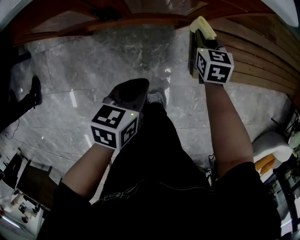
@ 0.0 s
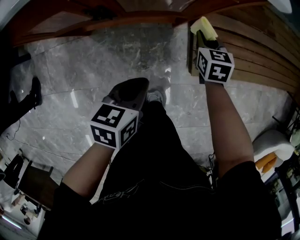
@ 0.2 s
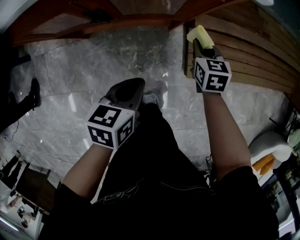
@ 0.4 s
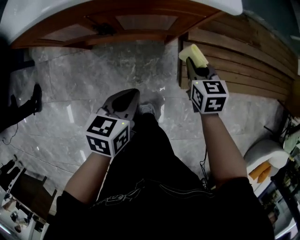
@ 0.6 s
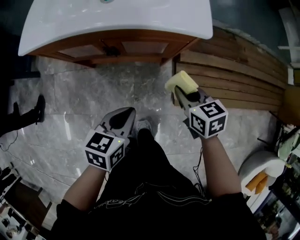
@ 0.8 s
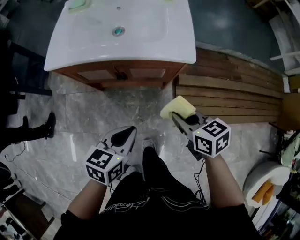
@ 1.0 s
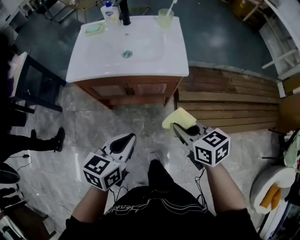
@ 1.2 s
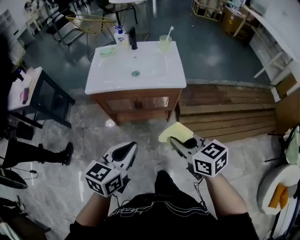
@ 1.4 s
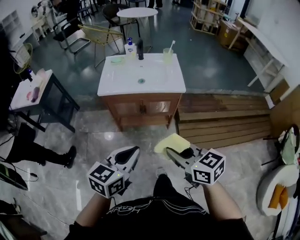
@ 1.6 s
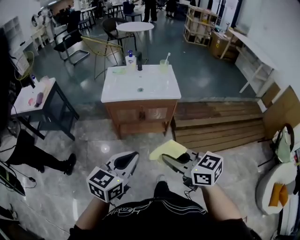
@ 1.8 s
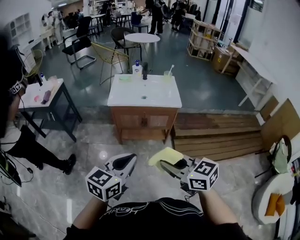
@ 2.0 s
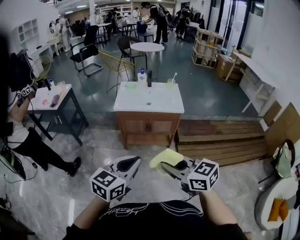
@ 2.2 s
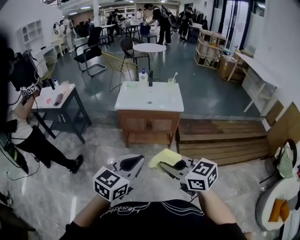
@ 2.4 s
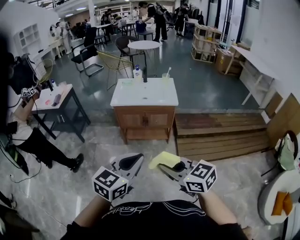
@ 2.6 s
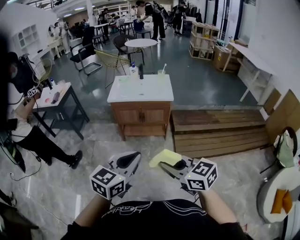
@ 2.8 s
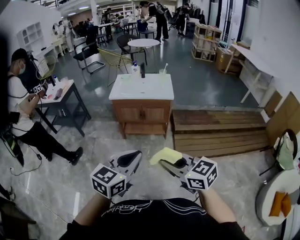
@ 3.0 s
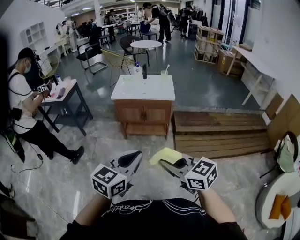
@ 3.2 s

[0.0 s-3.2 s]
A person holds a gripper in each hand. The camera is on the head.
0.0 to 1.6 s: The grippers both shift upward by approximately 50 cm. The left gripper changes its angle by roughly 40 degrees, while the right gripper changes its angle by some 40 degrees.
1.6 to 3.2 s: Both grippers move backward, about 30 cm.

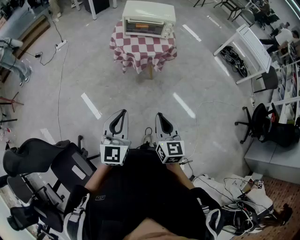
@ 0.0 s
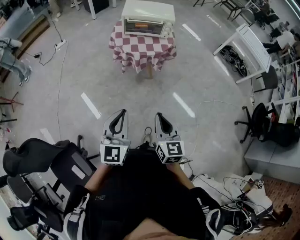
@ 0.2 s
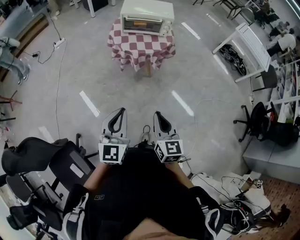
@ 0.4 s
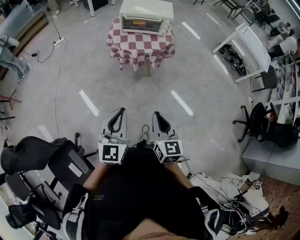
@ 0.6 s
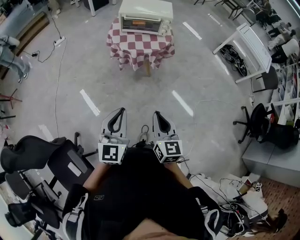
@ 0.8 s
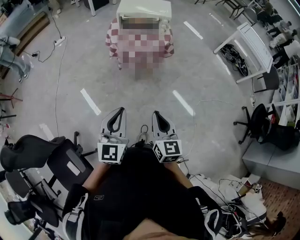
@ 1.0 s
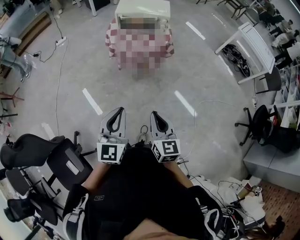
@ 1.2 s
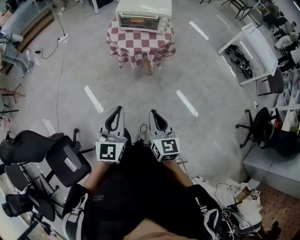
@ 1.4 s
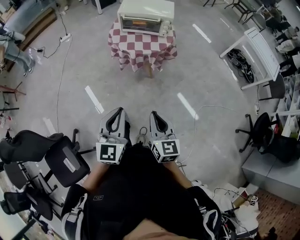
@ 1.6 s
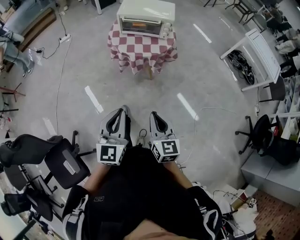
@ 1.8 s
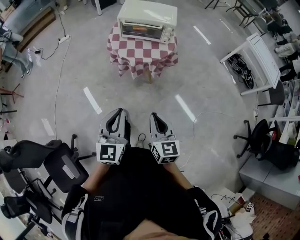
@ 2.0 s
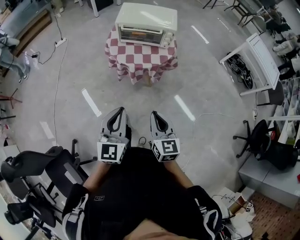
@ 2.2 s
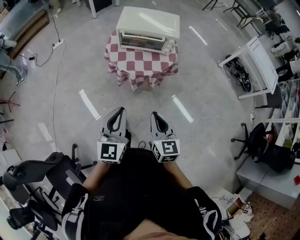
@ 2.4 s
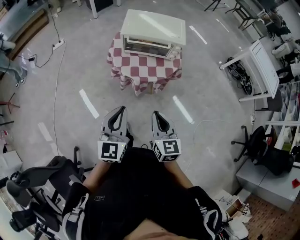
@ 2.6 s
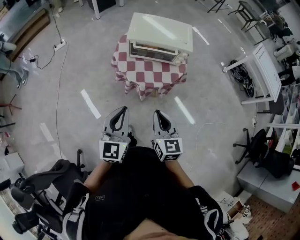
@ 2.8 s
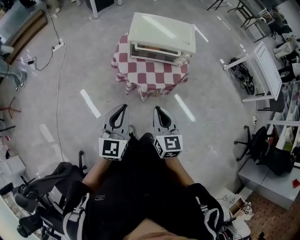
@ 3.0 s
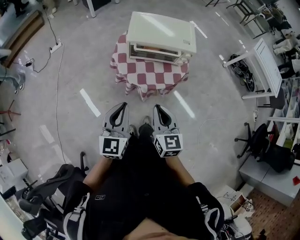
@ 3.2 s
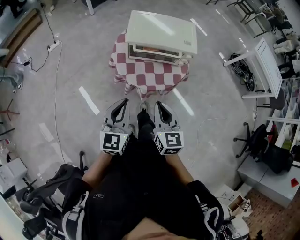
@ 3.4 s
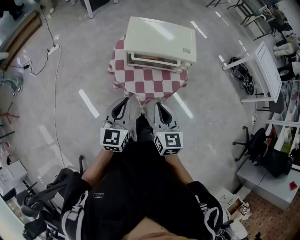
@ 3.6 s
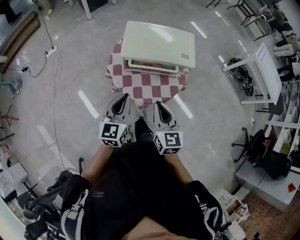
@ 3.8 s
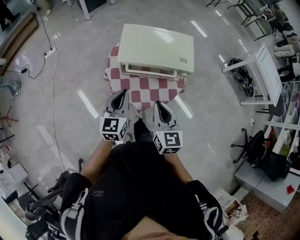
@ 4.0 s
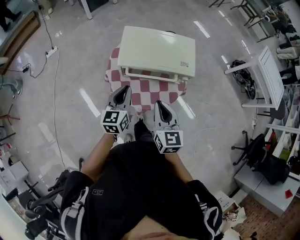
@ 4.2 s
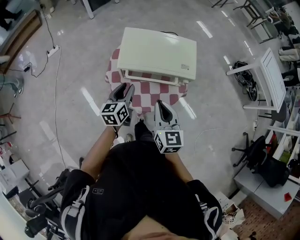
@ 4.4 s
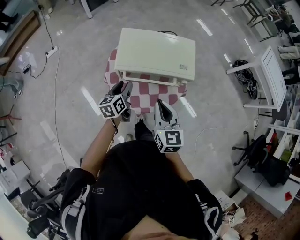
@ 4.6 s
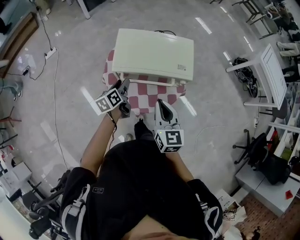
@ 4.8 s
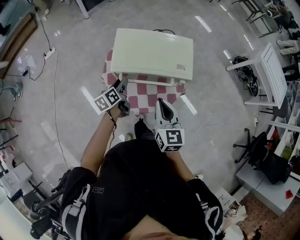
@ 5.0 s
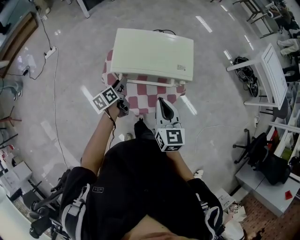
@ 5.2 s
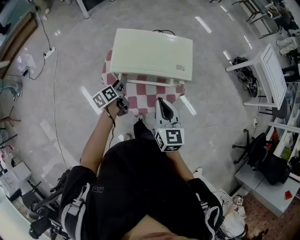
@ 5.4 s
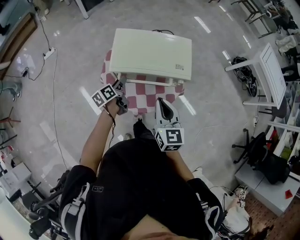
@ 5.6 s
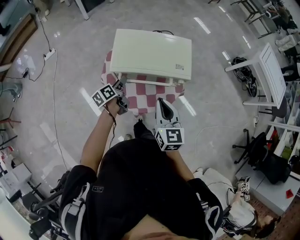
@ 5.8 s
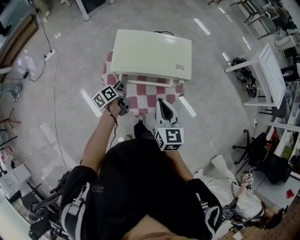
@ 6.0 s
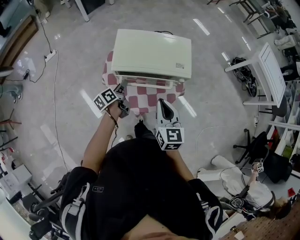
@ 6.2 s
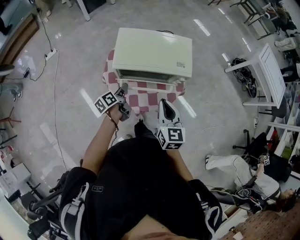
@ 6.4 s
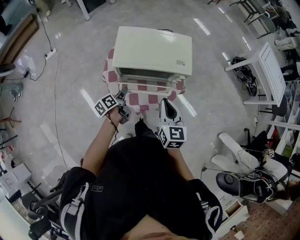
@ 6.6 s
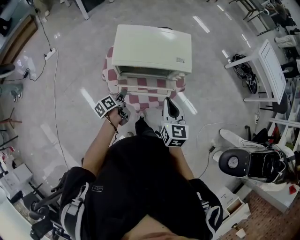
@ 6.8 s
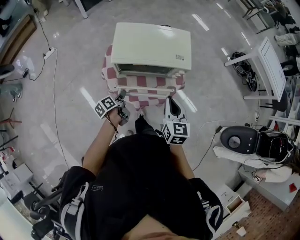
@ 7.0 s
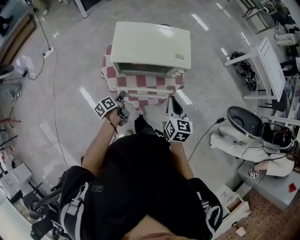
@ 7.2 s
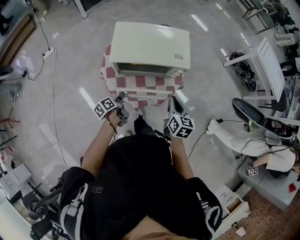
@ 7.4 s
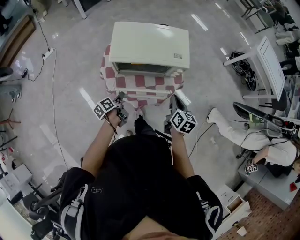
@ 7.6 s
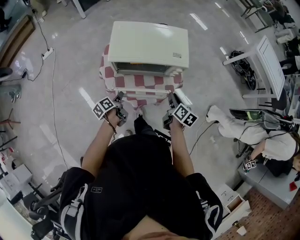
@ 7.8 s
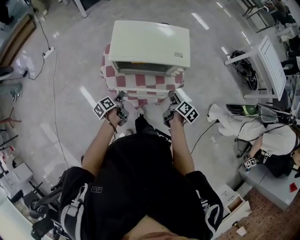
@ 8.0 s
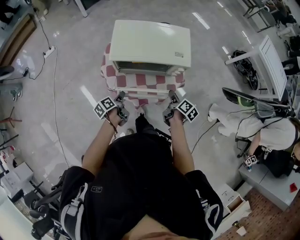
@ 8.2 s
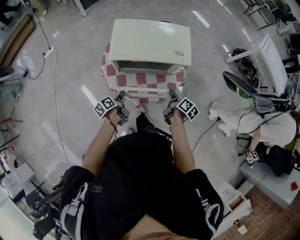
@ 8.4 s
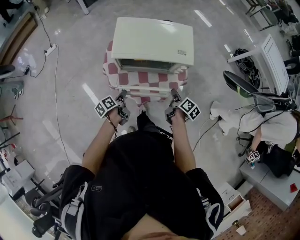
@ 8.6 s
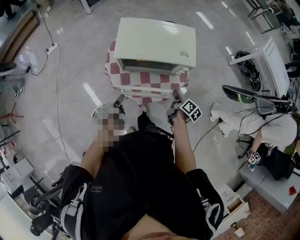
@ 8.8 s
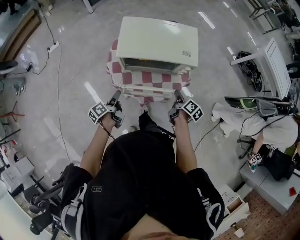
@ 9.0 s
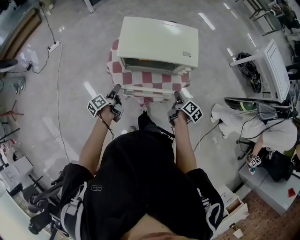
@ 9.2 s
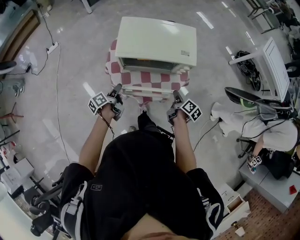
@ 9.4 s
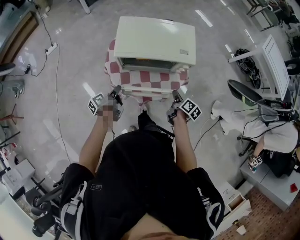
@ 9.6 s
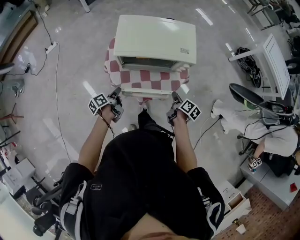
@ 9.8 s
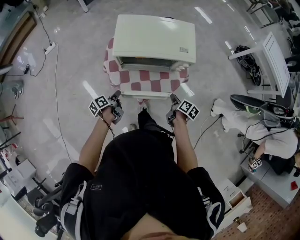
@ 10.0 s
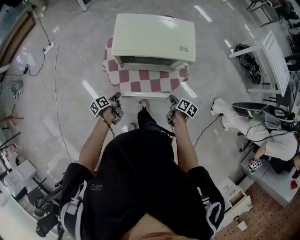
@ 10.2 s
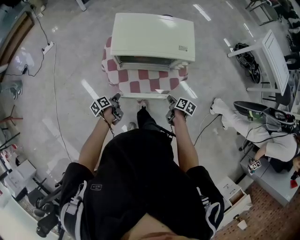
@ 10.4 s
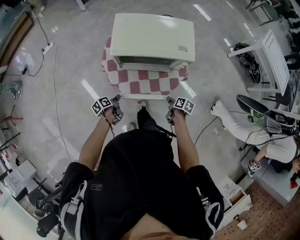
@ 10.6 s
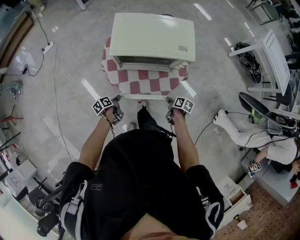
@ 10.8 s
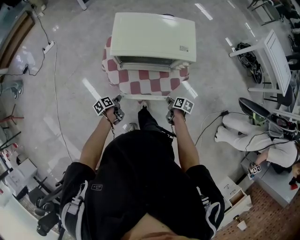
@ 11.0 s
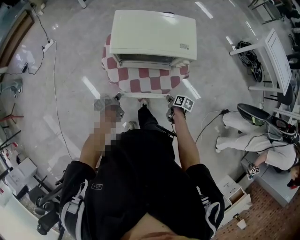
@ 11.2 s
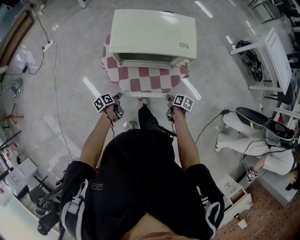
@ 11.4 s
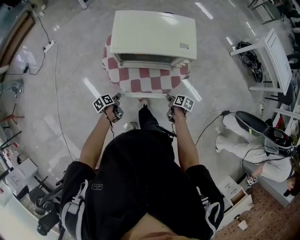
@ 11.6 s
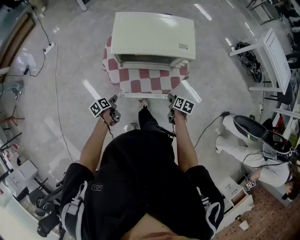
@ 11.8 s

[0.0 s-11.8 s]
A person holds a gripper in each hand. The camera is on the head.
0.0 to 1.4 s: The two grippers go some 10 cm to the right.
1.4 to 3.0 s: Both grippers move forward, about 35 cm.
3.0 to 4.4 s: The left gripper moves forward and downward, about 35 cm, turns by some 30 degrees, and opens its fingers. The right gripper shifts some 25 cm forward.
4.4 to 6.0 s: The left gripper is displaced downward and forward by roughly 10 cm, and swivels about 40 degrees.
6.0 to 7.4 s: The left gripper moves backward and downward, roughly 15 cm; the right gripper shifts some 15 cm to the right and downward, and turns by some 20 degrees.
7.4 to 8.8 s: The right gripper travels downward by approximately 10 cm, and twists about 40 degrees clockwise, seen from behind.
8.8 to 10.4 s: The left gripper goes approximately 10 cm downward, and closes its fingers. Meanwhile the right gripper heads downward and backward, covering approximately 10 cm, and swivels about 20 degrees.
10.4 to 11.8 s: The right gripper opens up.

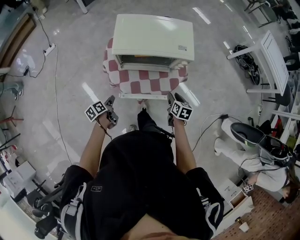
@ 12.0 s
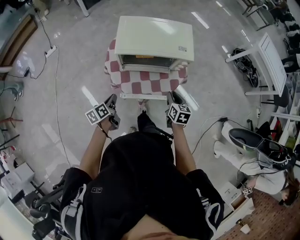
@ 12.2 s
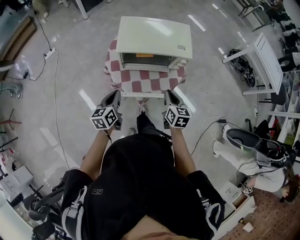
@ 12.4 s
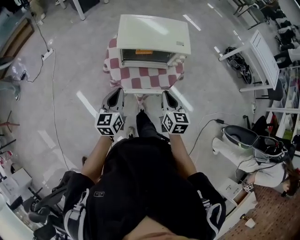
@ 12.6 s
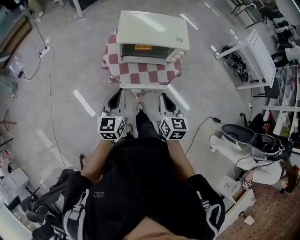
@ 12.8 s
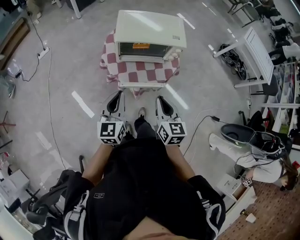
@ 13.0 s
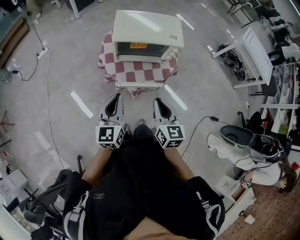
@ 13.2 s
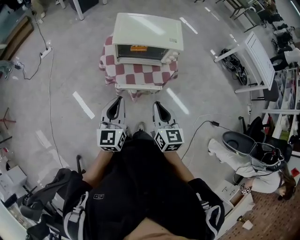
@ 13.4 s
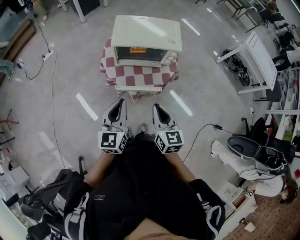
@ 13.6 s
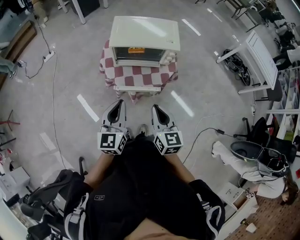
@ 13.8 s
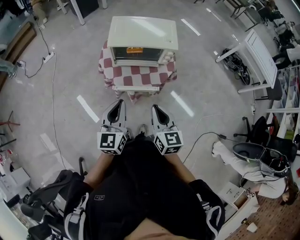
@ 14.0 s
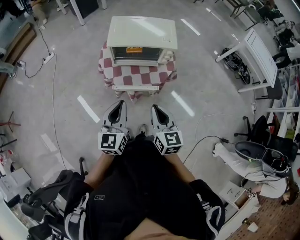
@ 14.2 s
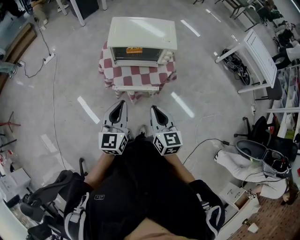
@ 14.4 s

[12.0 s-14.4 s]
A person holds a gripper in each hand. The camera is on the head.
12.0 to 13.2 s: The left gripper goes about 30 cm upward, twists some 50 degrees clockwise, seen from behind, and closes its fingers; the right gripper moves upward, backward and to the left, some 30 cm, changes its angle by approximately 30 degrees, and closes its fingers.
13.2 to 14.4 s: The left gripper is displaced to the right by about 5 cm.

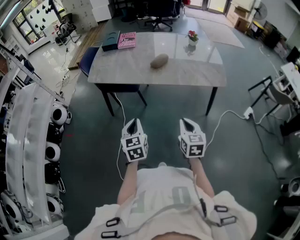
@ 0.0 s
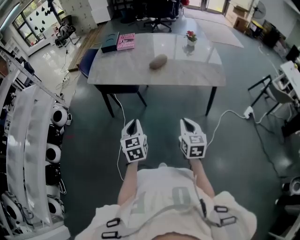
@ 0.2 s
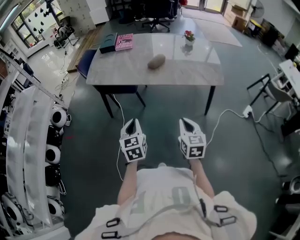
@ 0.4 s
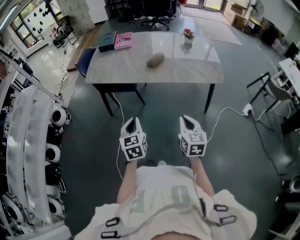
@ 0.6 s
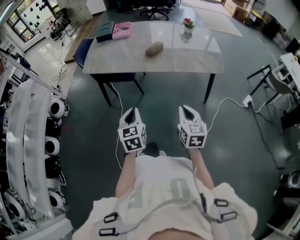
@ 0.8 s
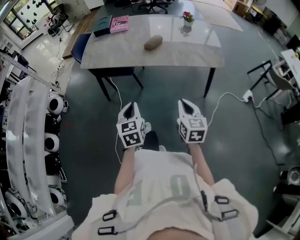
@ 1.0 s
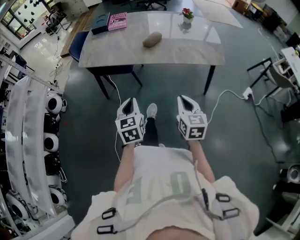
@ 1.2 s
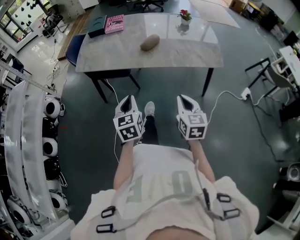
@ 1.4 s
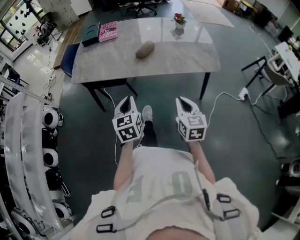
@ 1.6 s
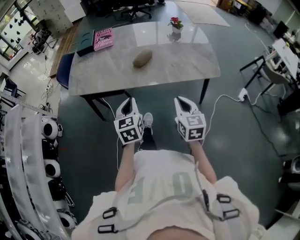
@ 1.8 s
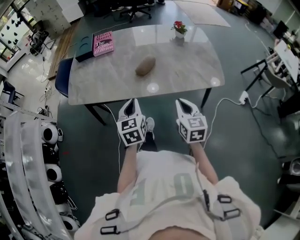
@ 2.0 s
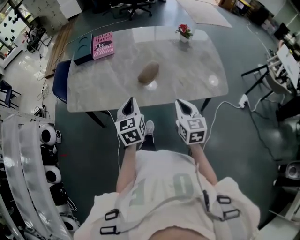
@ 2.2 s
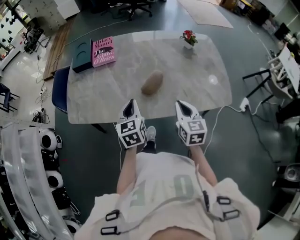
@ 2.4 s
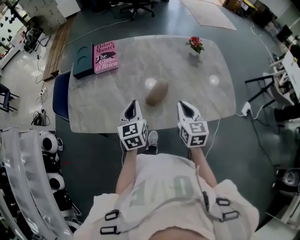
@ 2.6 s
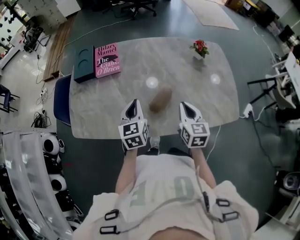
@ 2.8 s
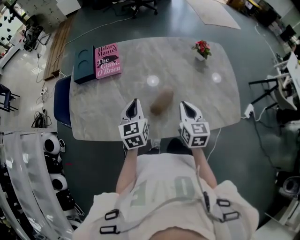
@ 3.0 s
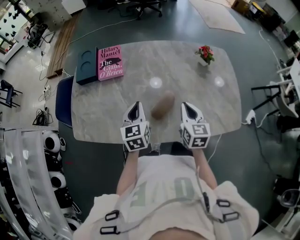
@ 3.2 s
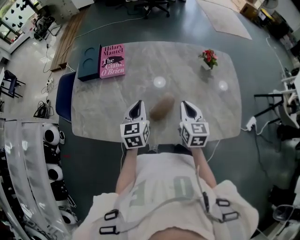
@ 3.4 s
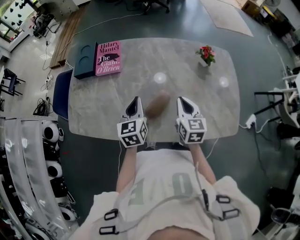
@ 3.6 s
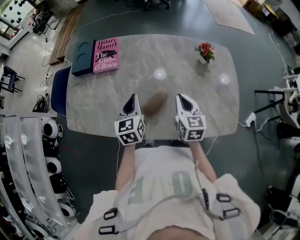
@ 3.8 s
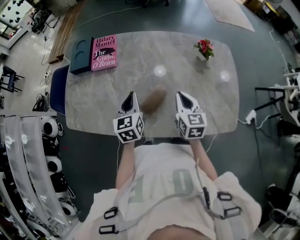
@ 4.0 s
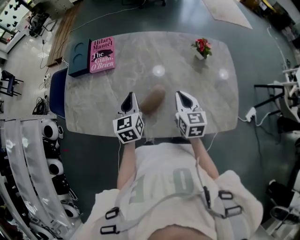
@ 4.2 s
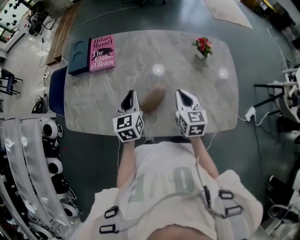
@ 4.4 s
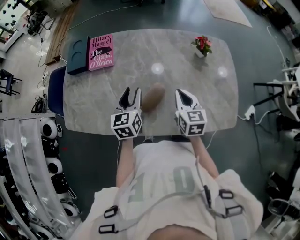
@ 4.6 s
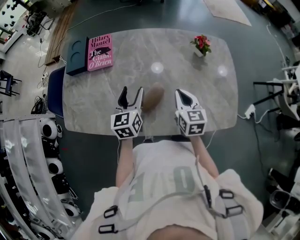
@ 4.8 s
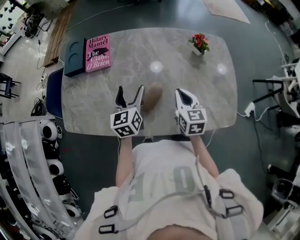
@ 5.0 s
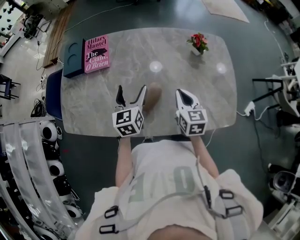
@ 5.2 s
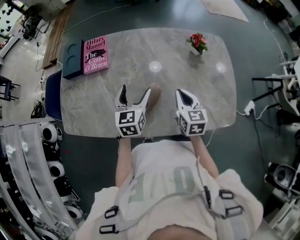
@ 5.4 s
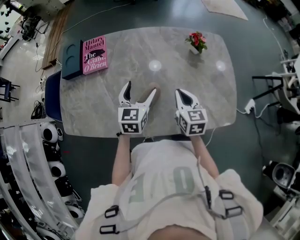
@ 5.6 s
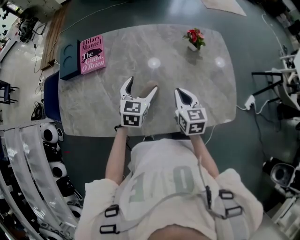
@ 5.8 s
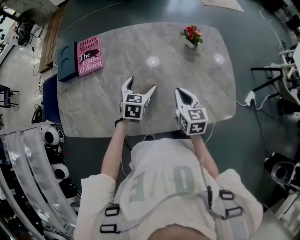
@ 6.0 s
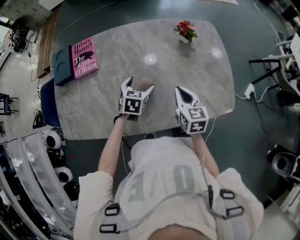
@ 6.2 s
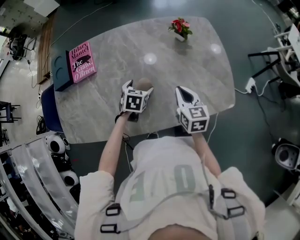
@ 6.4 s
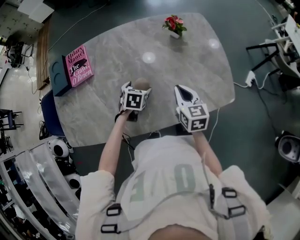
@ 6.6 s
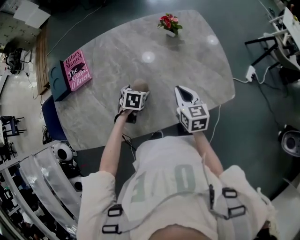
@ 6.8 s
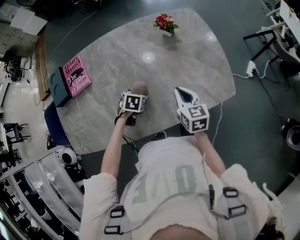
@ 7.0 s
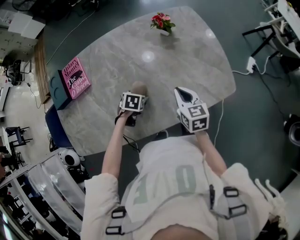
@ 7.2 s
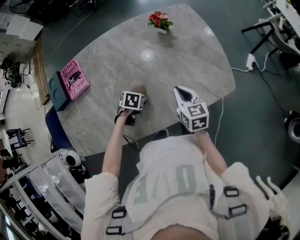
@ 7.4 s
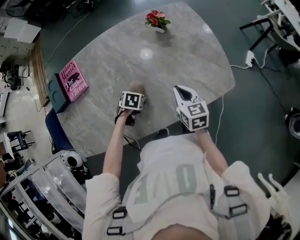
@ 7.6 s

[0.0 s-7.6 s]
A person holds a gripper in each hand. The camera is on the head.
0.0 to 1.6 s: Both grippers move forward, approximately 10 cm.
1.6 to 3.0 s: Both grippers are carried forward, approximately 40 cm.
3.0 to 4.6 s: The right gripper moves forward, some 5 cm. Meanwhile the left gripper is displaced to the right by some 5 cm, and opens its fingers.
4.6 to 6.0 s: The left gripper is displaced to the right and downward by about 10 cm, swivels roughly 30 degrees, and opens.
6.0 to 7.6 s: The right gripper shifts by roughly 10 cm. Meanwhile the left gripper heads downward, covering some 15 cm, and points its fingers roughly 40 degrees further downward.